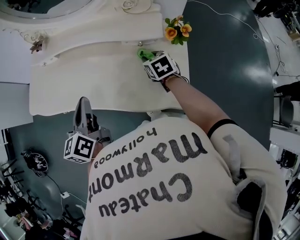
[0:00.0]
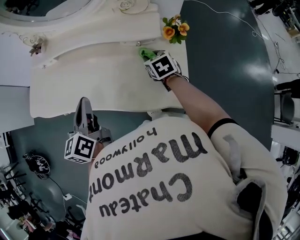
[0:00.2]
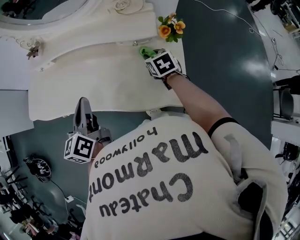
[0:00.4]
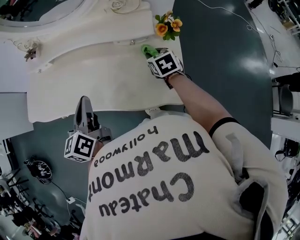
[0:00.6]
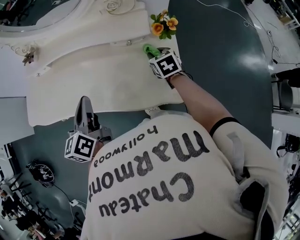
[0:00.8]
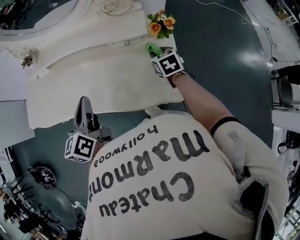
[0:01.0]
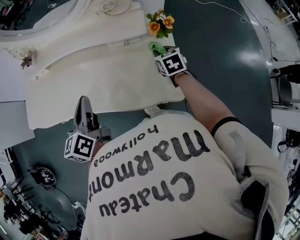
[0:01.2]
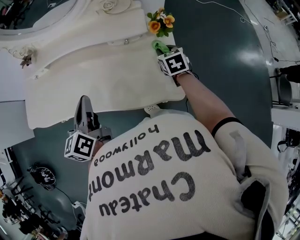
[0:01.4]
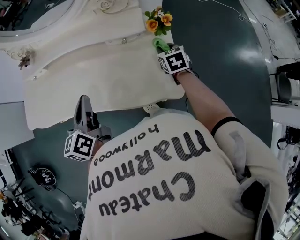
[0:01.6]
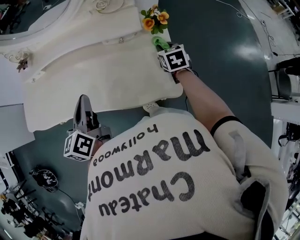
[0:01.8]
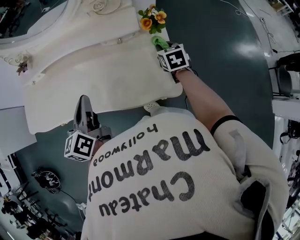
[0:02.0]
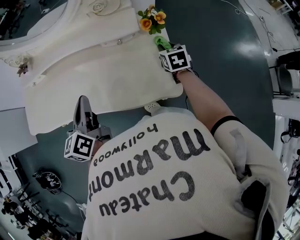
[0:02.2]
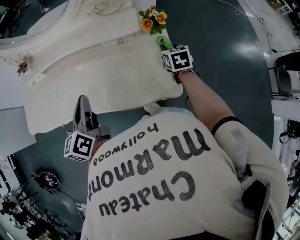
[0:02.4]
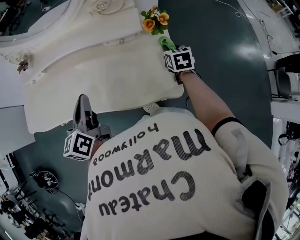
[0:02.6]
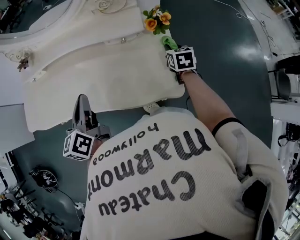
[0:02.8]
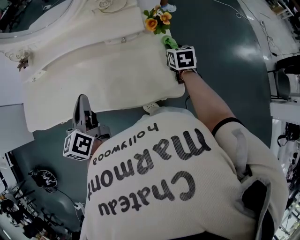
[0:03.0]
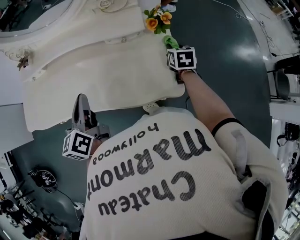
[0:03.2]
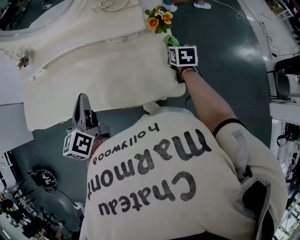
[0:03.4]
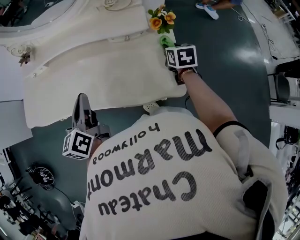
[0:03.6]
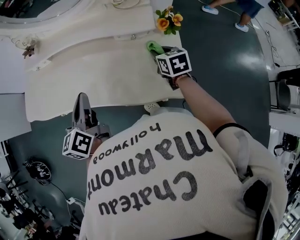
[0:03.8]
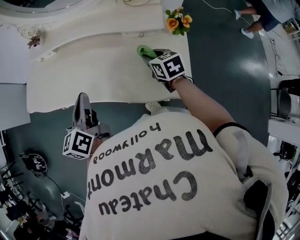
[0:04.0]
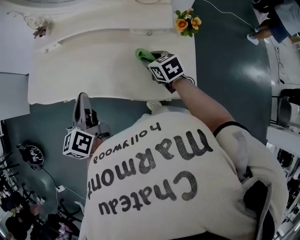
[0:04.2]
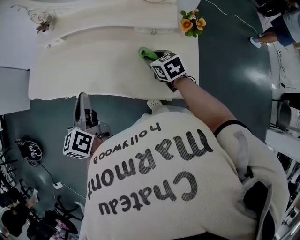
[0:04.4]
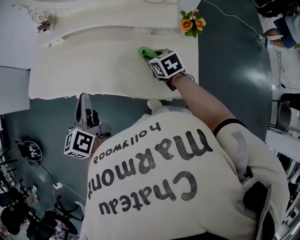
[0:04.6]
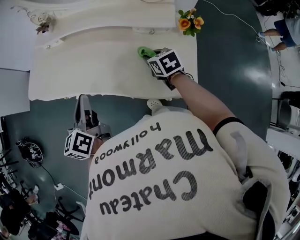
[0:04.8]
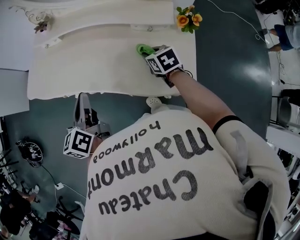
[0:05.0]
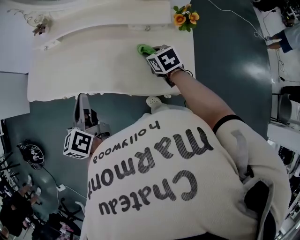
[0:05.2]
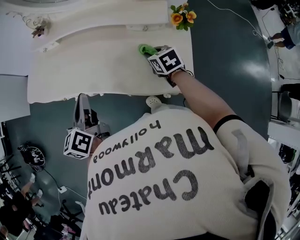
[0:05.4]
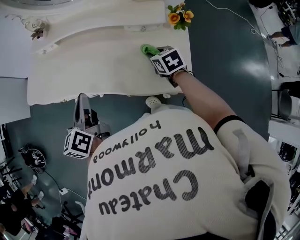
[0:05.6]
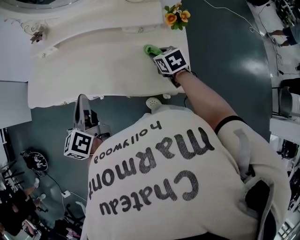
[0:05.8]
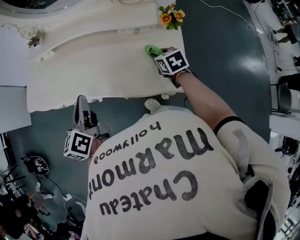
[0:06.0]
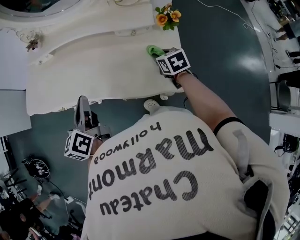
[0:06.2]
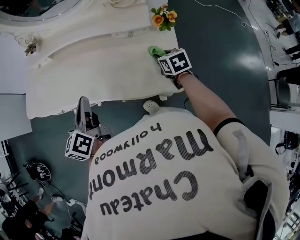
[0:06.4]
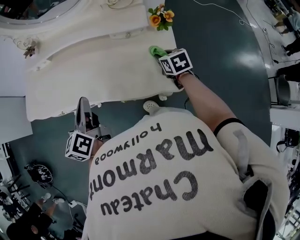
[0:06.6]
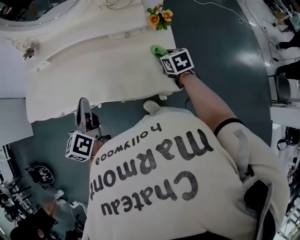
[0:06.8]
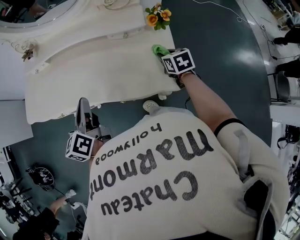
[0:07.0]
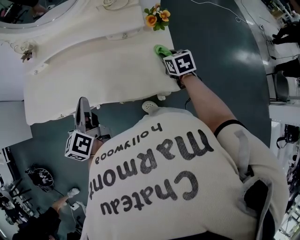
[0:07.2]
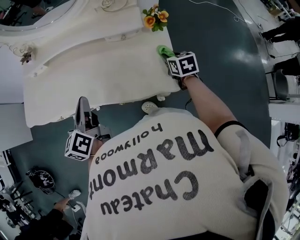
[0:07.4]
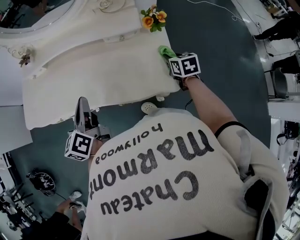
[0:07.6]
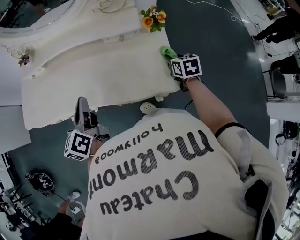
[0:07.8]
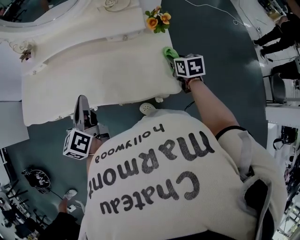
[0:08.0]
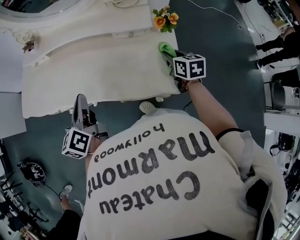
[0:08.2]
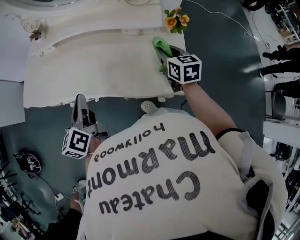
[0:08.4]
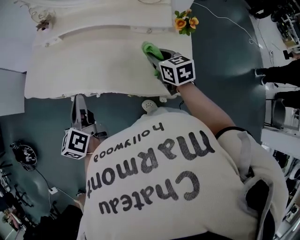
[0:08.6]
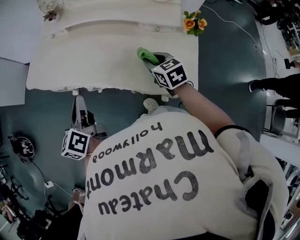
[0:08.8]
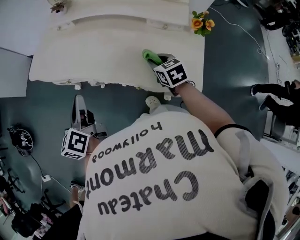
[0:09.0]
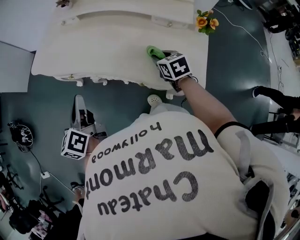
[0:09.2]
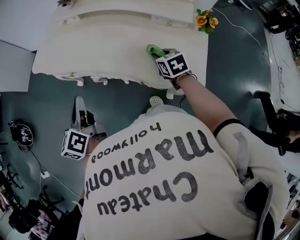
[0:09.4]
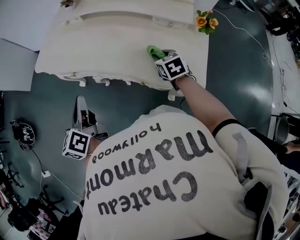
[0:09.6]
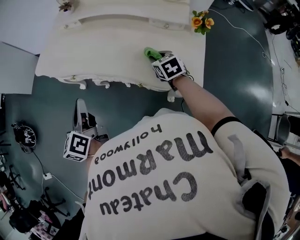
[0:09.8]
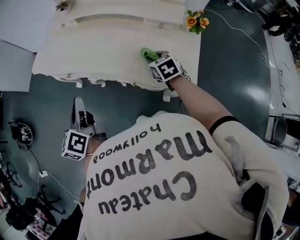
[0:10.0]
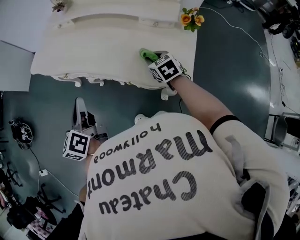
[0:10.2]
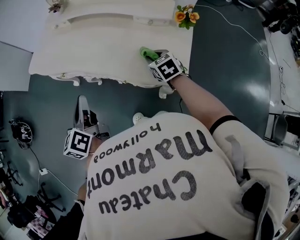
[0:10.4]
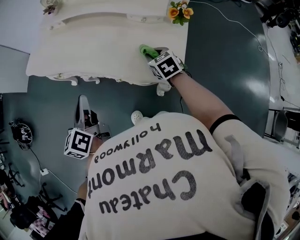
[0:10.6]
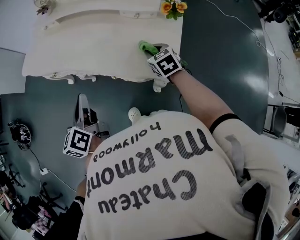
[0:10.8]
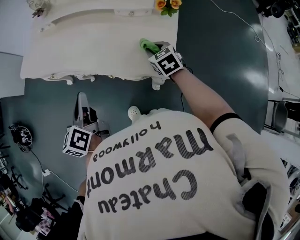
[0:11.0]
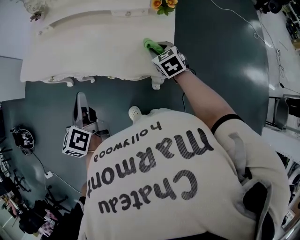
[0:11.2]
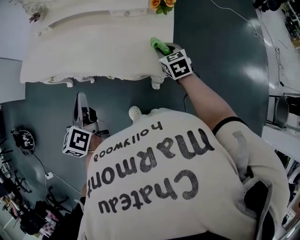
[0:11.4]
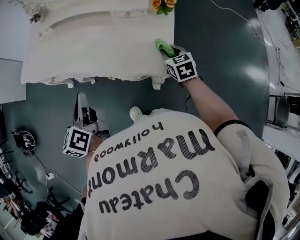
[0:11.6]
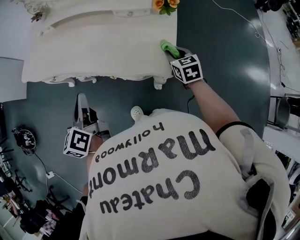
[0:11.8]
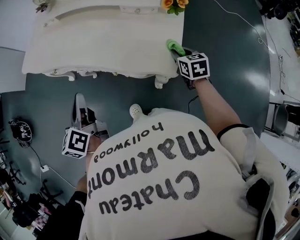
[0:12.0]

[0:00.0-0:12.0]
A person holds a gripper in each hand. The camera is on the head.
0:00.0 to 0:01.6: The right gripper shifts some 15 cm to the right.
0:01.6 to 0:03.0: The grippers move only a little.
0:03.0 to 0:04.4: The right gripper moves some 25 cm, and turns by about 40 degrees. The left gripper changes place by approximately 10 cm.
0:04.4 to 0:06.0: The right gripper is displaced to the right by some 10 cm.
0:06.0 to 0:07.6: The right gripper goes about 10 cm to the right.
0:07.6 to 0:09.0: The left gripper shifts some 15 cm to the left and backward, and turns by approximately 20 degrees. Meanwhile the right gripper travels to the left by roughly 25 cm, and turns by about 30 degrees.
0:09.0 to 0:10.4: The left gripper shifts roughly 10 cm backward and to the right. The right gripper changes place by some 5 cm.
0:10.4 to 0:12.0: The right gripper goes approximately 15 cm to the right and backward.

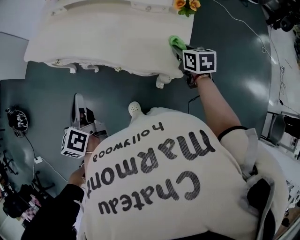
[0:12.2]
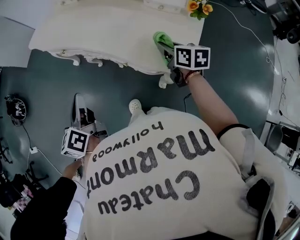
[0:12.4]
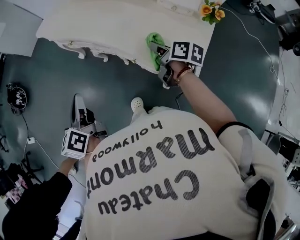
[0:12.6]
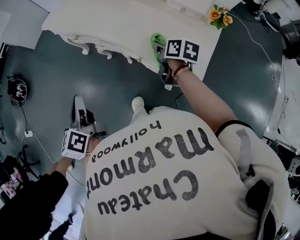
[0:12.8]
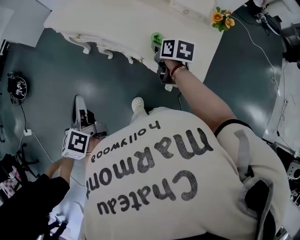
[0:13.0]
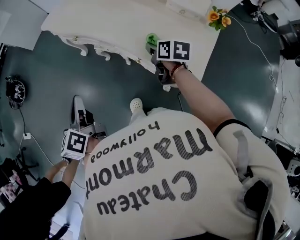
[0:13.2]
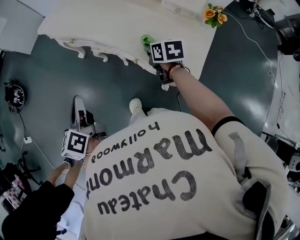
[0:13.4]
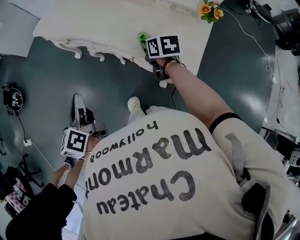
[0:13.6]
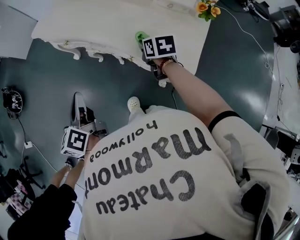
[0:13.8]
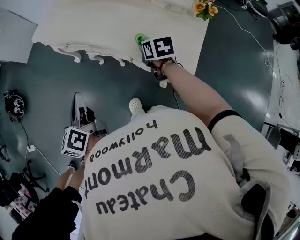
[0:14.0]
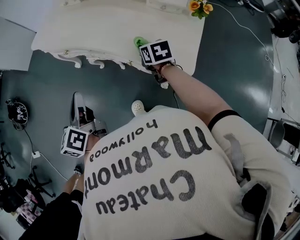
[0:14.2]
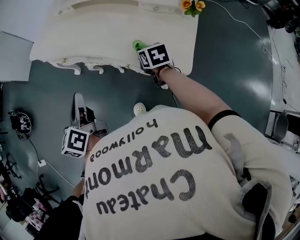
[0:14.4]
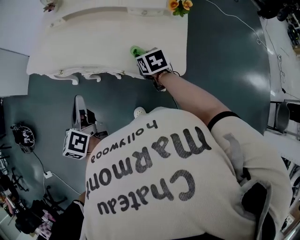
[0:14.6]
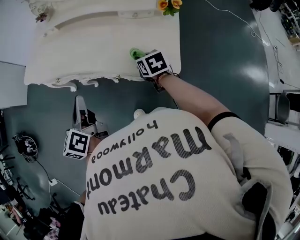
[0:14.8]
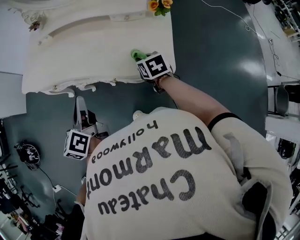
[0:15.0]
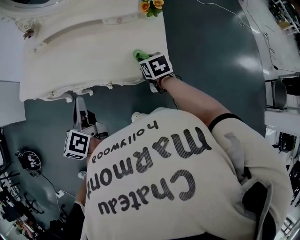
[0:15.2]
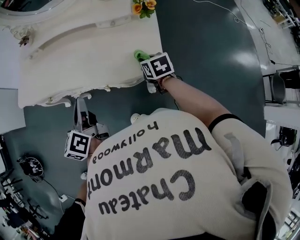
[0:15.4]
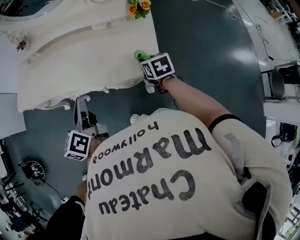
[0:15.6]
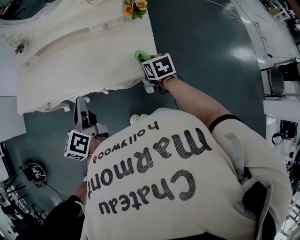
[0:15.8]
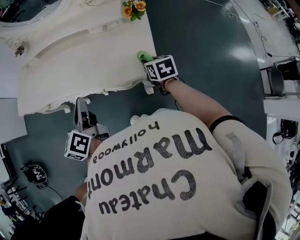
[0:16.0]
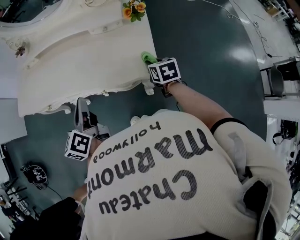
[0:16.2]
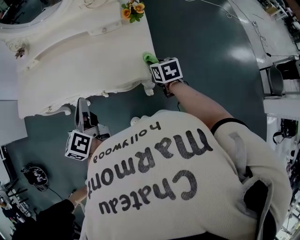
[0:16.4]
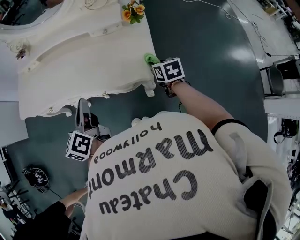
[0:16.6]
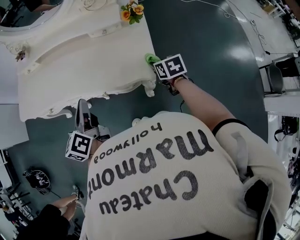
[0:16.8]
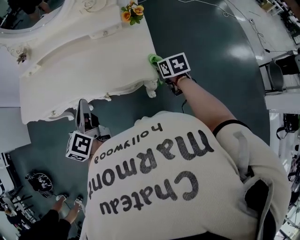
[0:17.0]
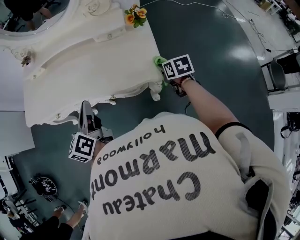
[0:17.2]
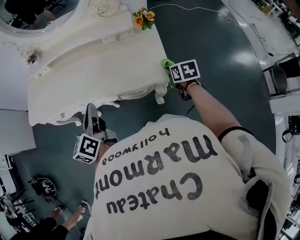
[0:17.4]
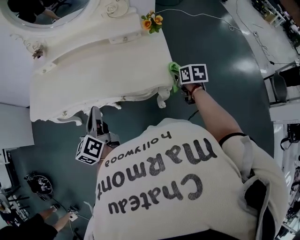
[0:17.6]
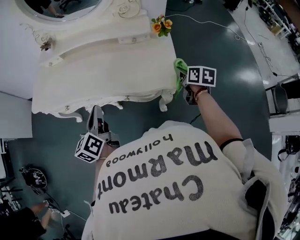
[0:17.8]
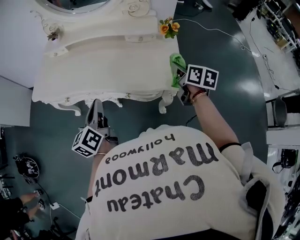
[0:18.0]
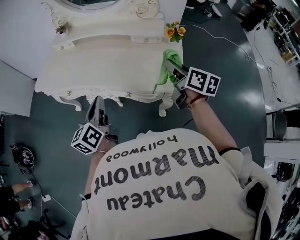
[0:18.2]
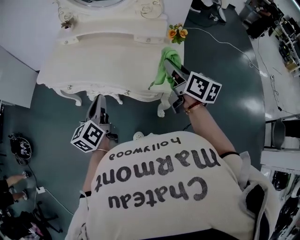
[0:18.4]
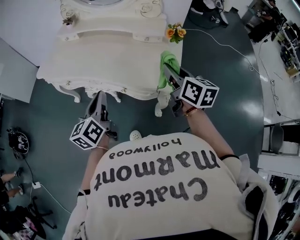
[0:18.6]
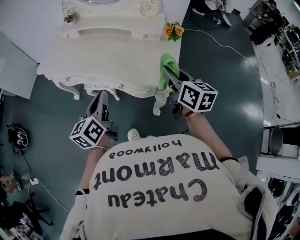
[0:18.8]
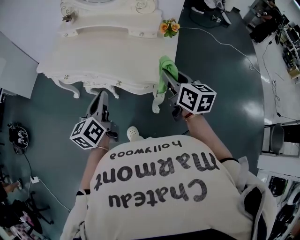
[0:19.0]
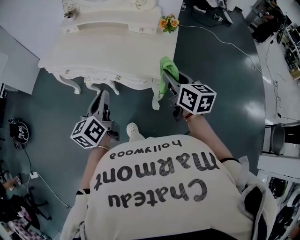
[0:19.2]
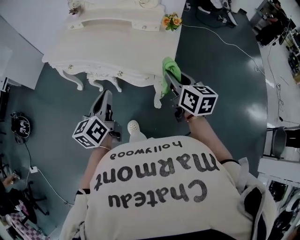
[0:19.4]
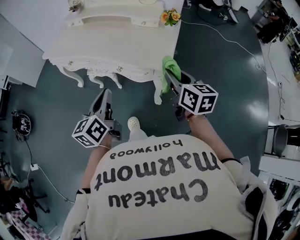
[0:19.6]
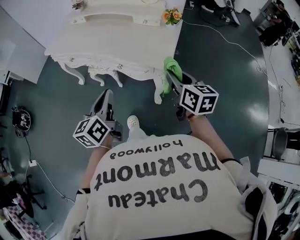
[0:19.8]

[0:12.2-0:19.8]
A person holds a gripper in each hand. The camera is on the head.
0:12.2 to 0:13.8: The right gripper heads to the left and forward, covering some 20 cm, while the left gripper moves to the left, about 5 cm.
0:13.8 to 0:15.2: The left gripper is displaced to the right and forward by approximately 15 cm, and swivels about 30 degrees; the right gripper shifts roughly 15 cm to the right and backward.
0:15.2 to 0:16.8: The right gripper goes approximately 10 cm to the right, while the left gripper changes place by approximately 5 cm.
0:16.8 to 0:18.2: The left gripper is displaced to the left by about 5 cm, while the right gripper moves upward and to the left, some 20 cm, and angles its fingers upward, by about 30 degrees.
0:18.2 to 0:19.8: The right gripper goes approximately 20 cm backward; the left gripper heads backward and to the right, covering approximately 20 cm.

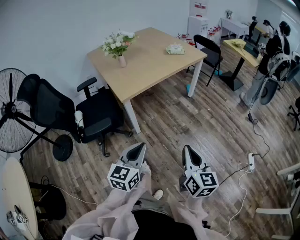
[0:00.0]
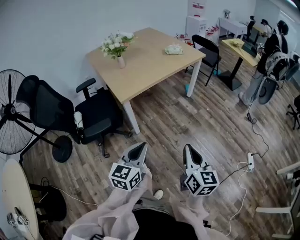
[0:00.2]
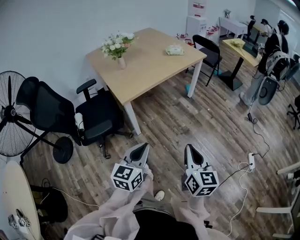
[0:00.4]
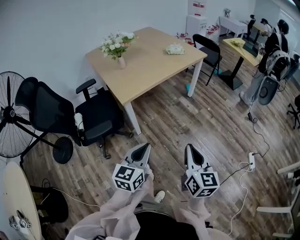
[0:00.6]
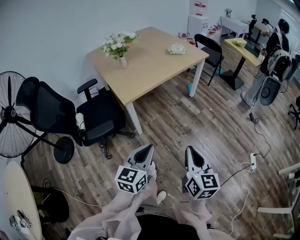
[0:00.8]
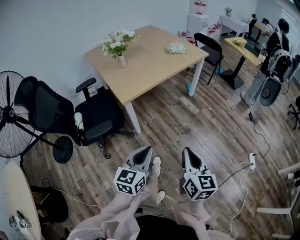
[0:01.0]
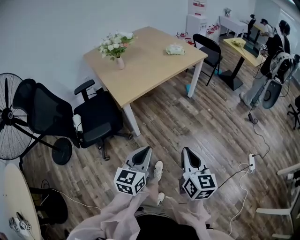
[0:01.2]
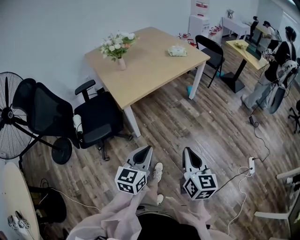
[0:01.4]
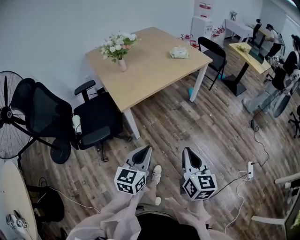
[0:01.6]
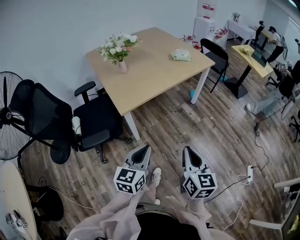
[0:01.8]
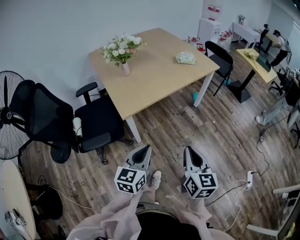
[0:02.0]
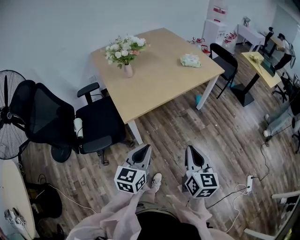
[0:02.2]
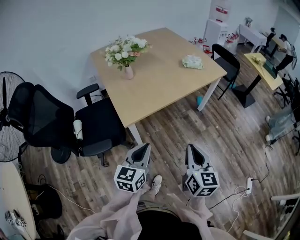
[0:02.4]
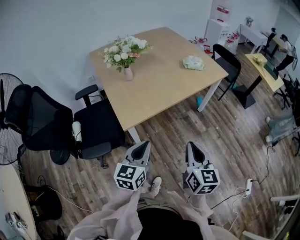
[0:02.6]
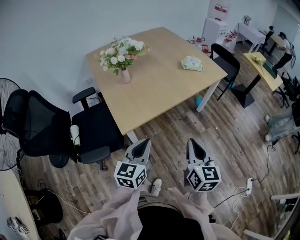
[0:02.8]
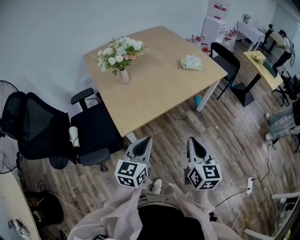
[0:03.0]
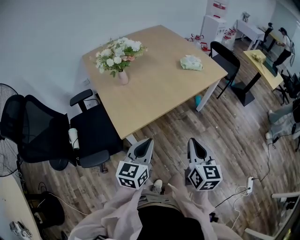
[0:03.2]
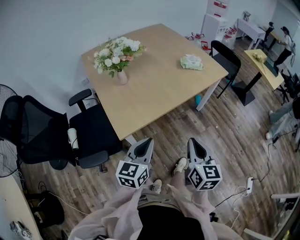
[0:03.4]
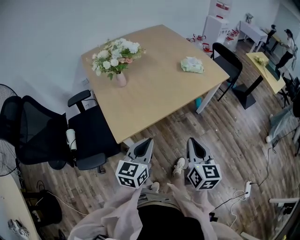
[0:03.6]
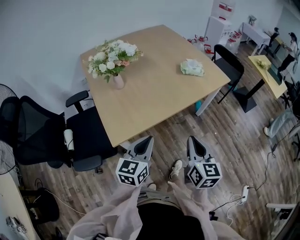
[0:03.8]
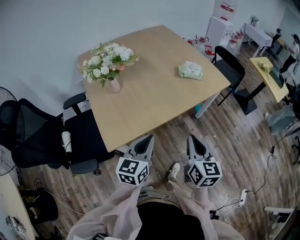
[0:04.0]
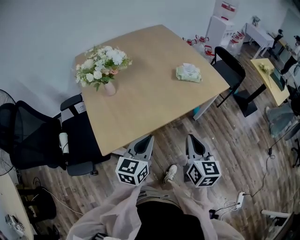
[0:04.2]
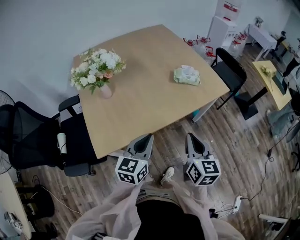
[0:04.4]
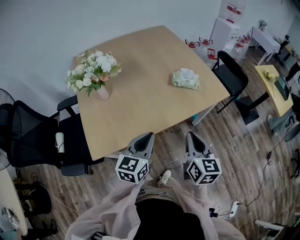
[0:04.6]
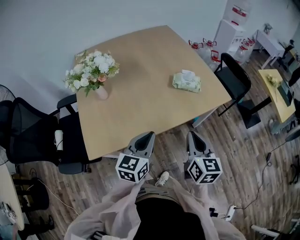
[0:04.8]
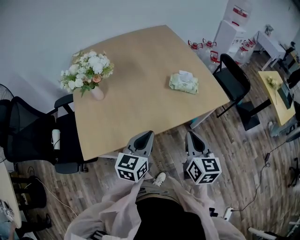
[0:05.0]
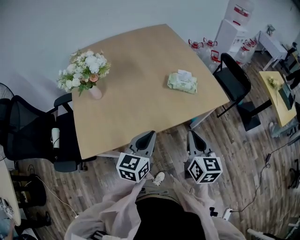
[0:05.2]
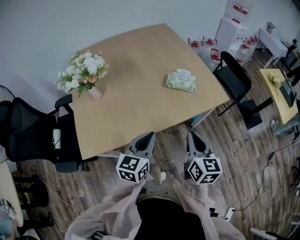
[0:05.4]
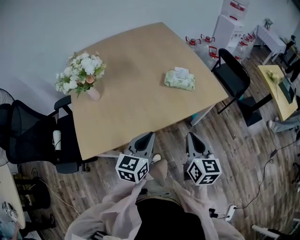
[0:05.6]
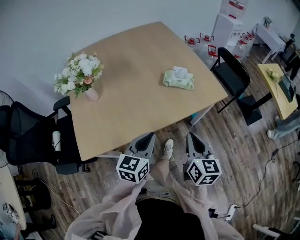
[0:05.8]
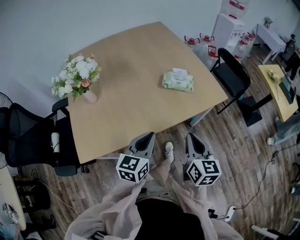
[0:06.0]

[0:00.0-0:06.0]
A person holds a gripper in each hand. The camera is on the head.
0:00.0 to 0:01.6: The grippers both shift forward by roughly 10 cm.
0:01.6 to 0:03.0: The two grippers go some 25 cm forward.
0:03.0 to 0:04.4: Both grippers travel together forward and to the right, approximately 25 cm.
0:04.4 to 0:06.0: The two grippers go roughly 15 cm to the right and forward.
